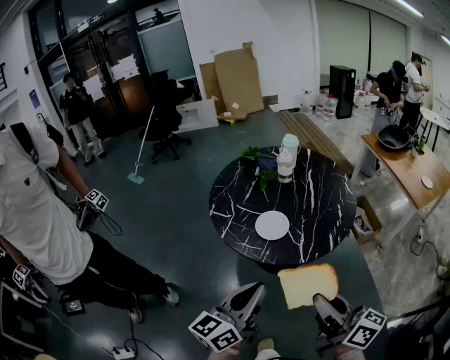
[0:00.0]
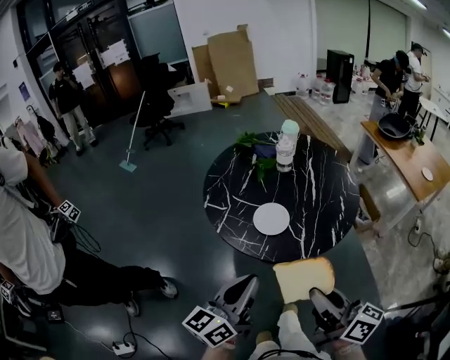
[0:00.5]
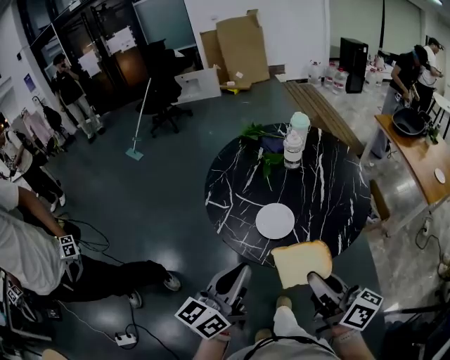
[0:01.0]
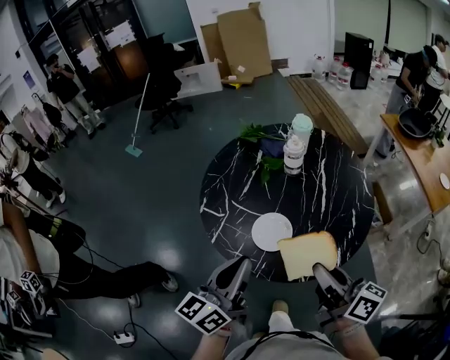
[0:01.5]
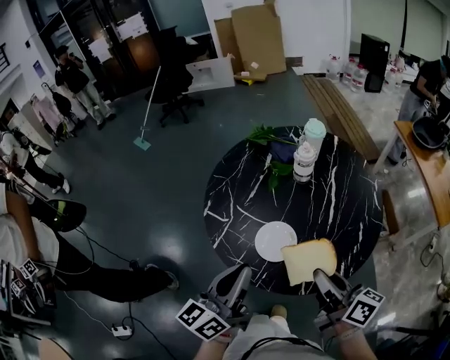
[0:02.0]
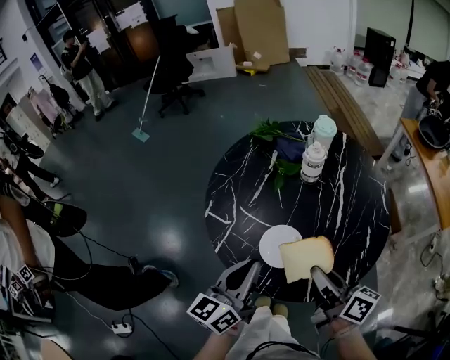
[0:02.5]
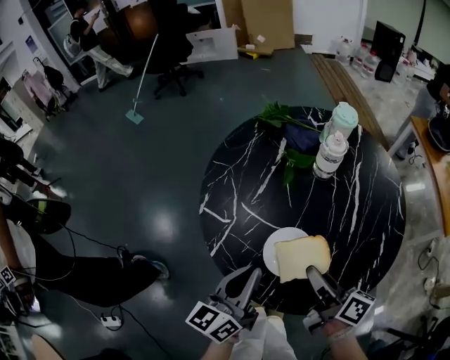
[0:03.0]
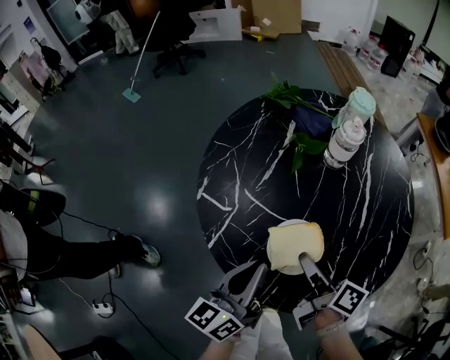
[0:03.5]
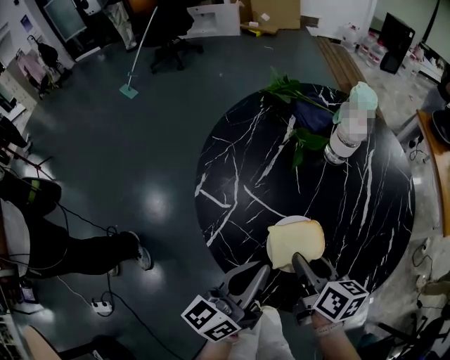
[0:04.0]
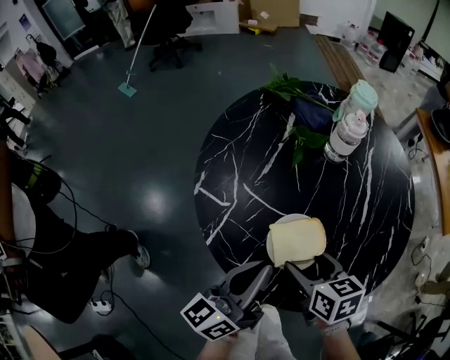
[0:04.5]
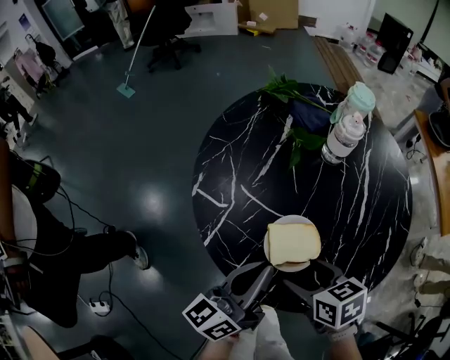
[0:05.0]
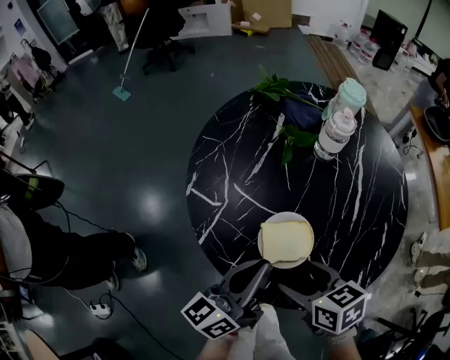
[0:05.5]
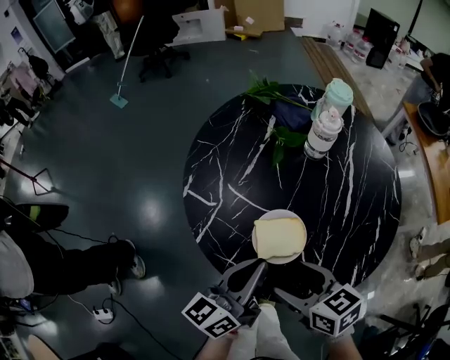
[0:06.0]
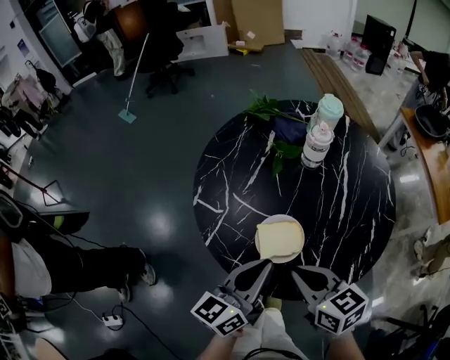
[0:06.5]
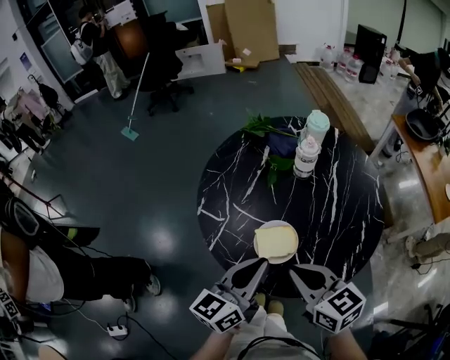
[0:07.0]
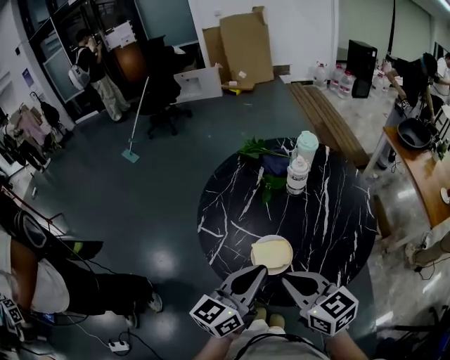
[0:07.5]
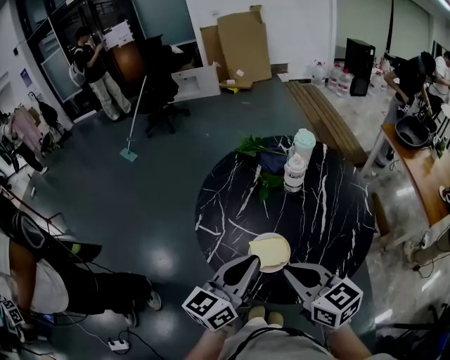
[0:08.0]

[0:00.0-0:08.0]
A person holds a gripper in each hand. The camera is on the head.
0:00.0 to 0:02.0: The two grippers go approximately 25 cm forward.
0:02.0 to 0:04.0: The right gripper travels downward, forward and to the left by roughly 25 cm, and turns by some 30 degrees; the left gripper goes approximately 15 cm downward and forward.
0:04.0 to 0:06.0: The right gripper is displaced backward by approximately 5 cm, turns by approximately 30 degrees, and opens up.
0:06.0 to 0:08.0: The grippers both shift upward by roughly 15 cm. The right gripper turns by about 20 degrees, and closes its fingers.

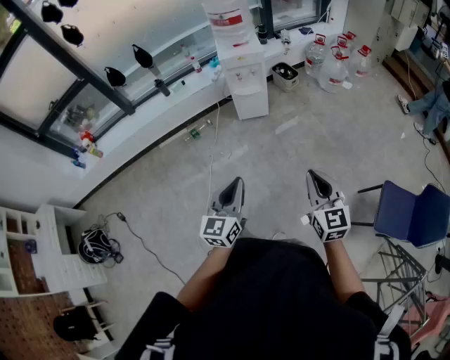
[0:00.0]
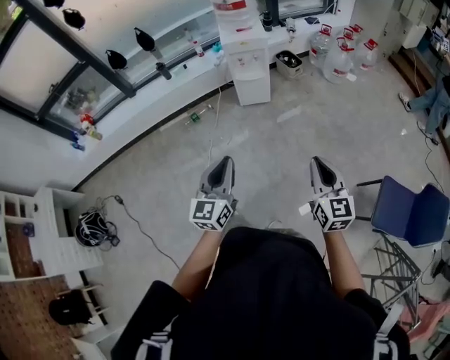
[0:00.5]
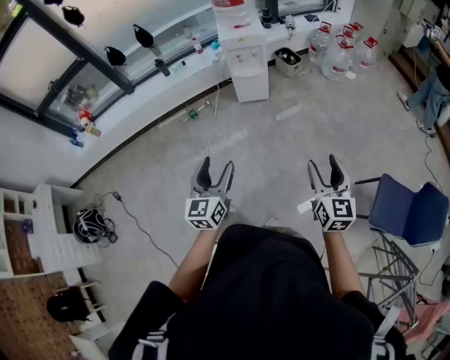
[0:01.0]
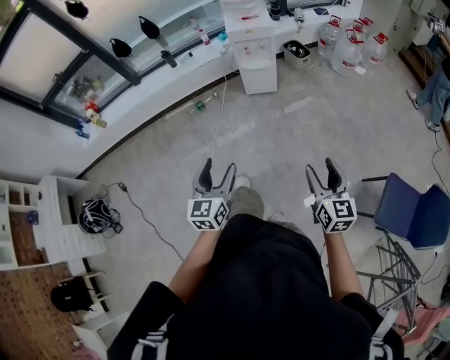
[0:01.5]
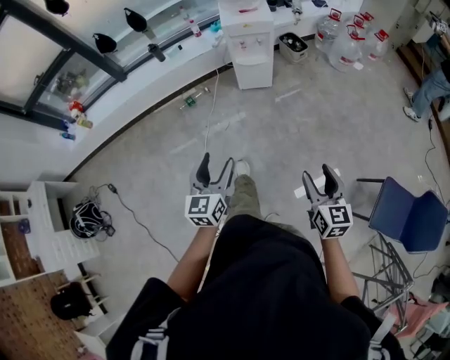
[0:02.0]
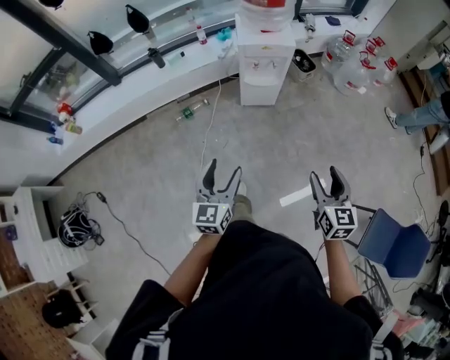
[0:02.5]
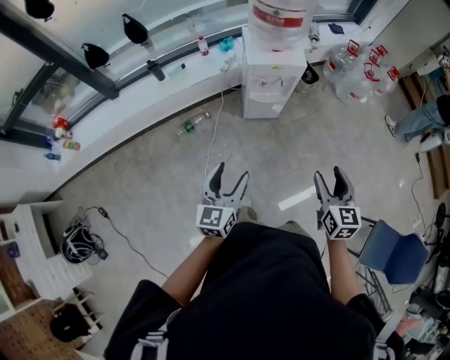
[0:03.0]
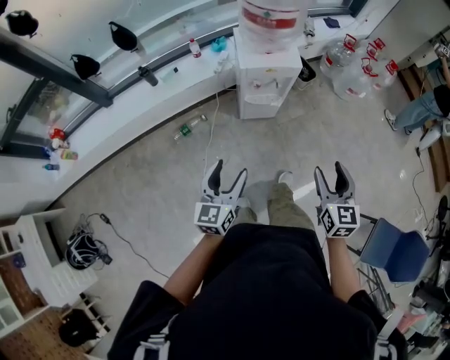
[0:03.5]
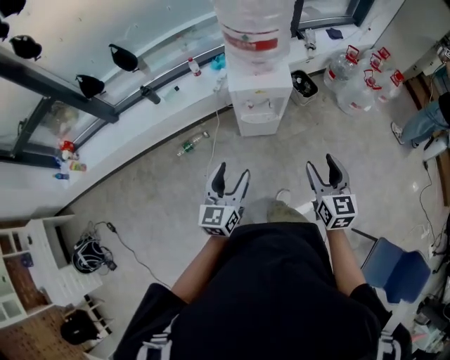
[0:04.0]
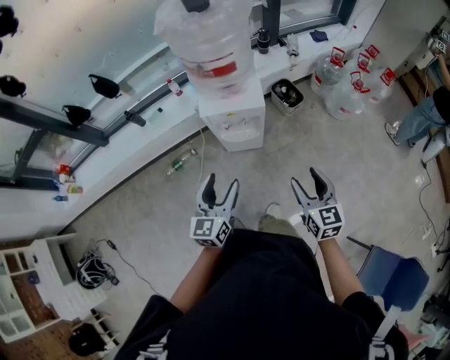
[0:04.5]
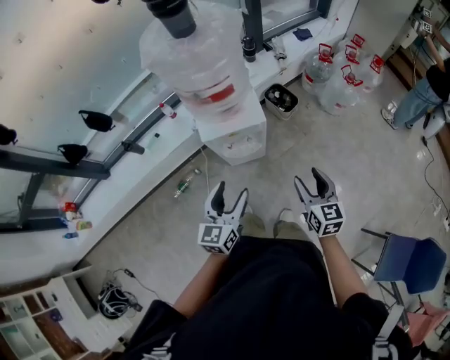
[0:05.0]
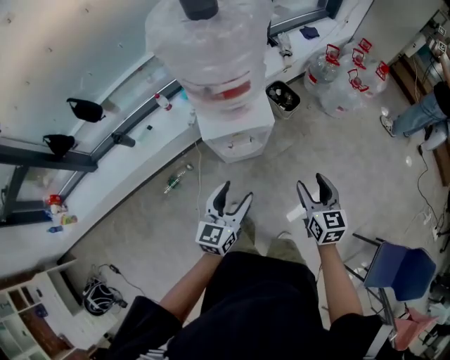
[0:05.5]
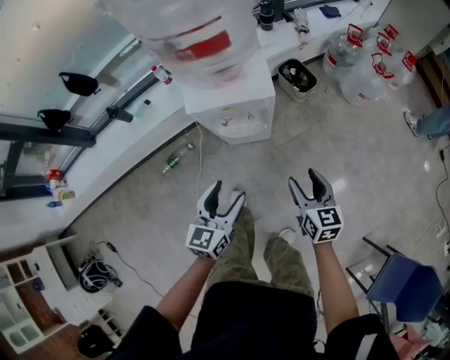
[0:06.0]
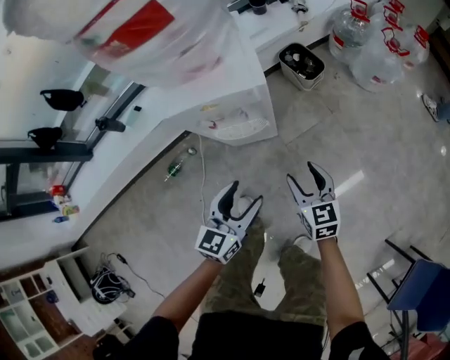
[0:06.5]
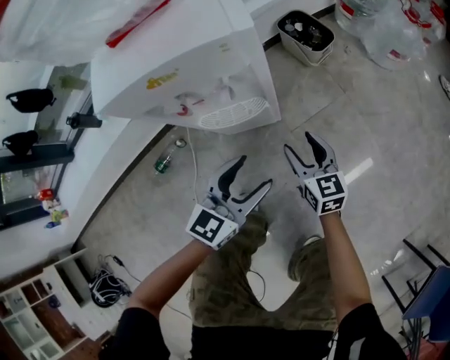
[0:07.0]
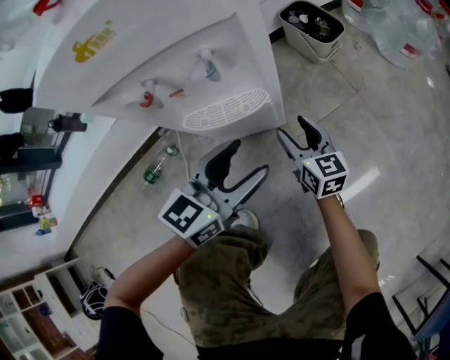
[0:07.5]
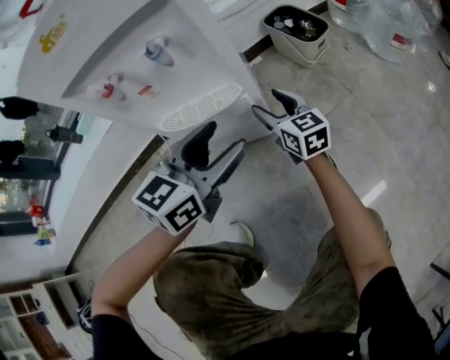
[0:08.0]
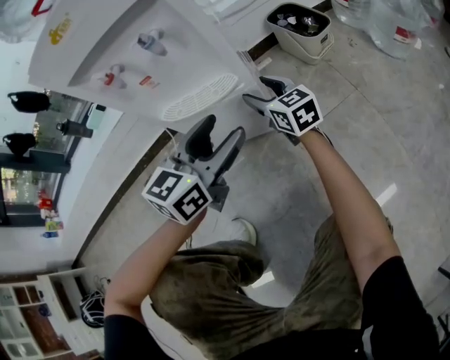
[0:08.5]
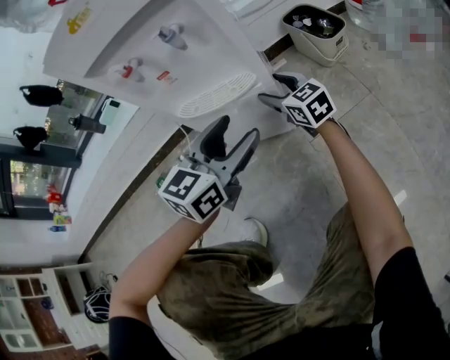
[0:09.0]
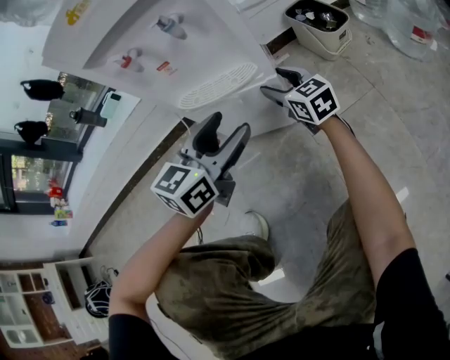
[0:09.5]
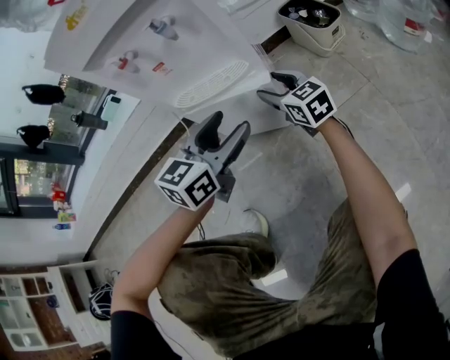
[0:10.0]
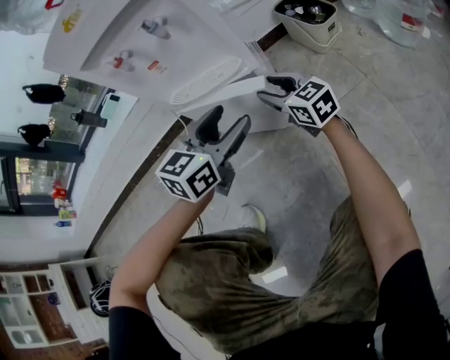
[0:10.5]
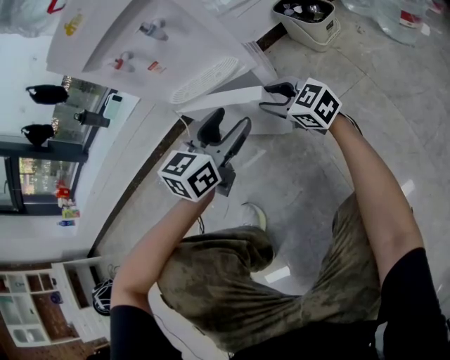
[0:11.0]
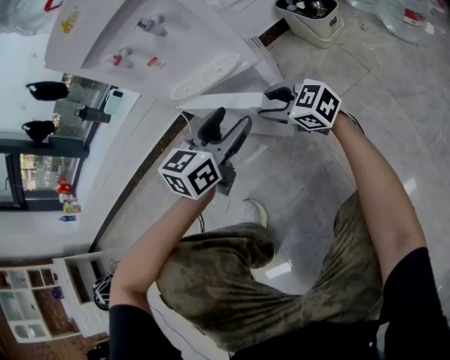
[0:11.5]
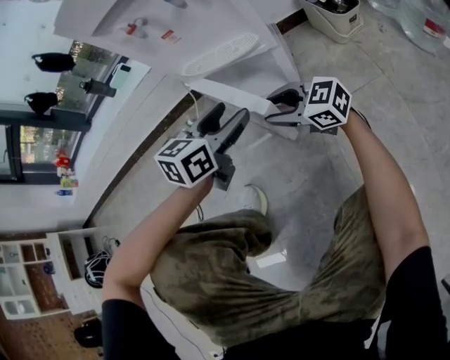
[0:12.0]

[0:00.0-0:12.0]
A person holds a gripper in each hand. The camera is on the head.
0:00.0 to 0:02.0: The right gripper shifts some 10 cm downward, and opens up. The left gripper moves forward, downward and to the left, roughly 15 cm, and opens up.
0:02.0 to 0:04.0: Both grippers are carried forward, about 40 cm.
0:04.0 to 0:06.0: The right gripper shifts about 25 cm downward and forward; the left gripper heads downward, forward and to the right, covering roughly 20 cm.
0:06.0 to 0:08.0: The grippers both shift downward and forward by roughly 50 cm.
0:08.0 to 0:10.0: The left gripper moves roughly 5 cm.
0:10.0 to 0:12.0: The right gripper moves backward and to the left, some 15 cm, and turns by roughly 40 degrees.

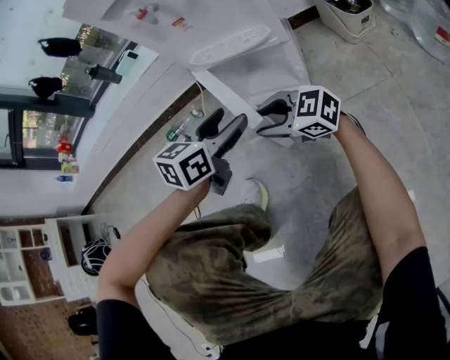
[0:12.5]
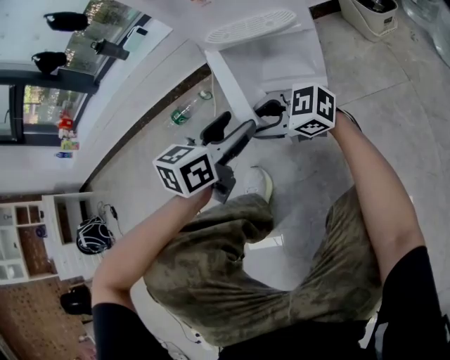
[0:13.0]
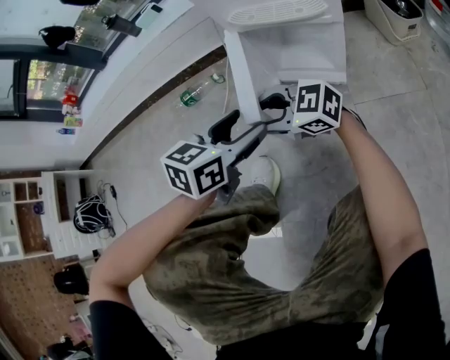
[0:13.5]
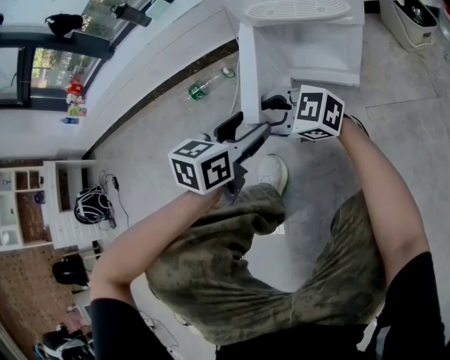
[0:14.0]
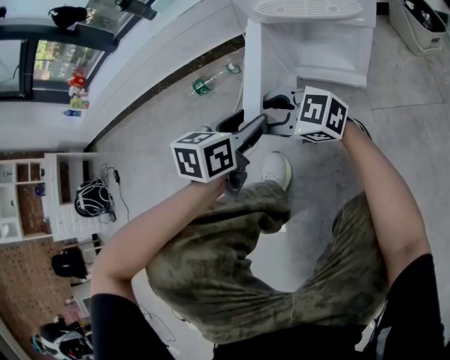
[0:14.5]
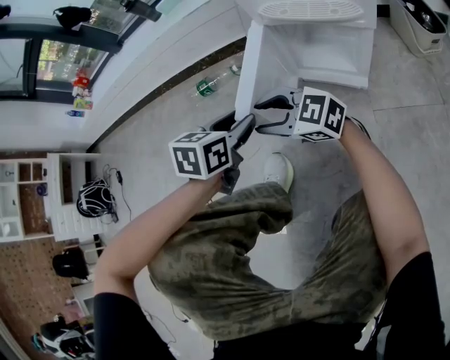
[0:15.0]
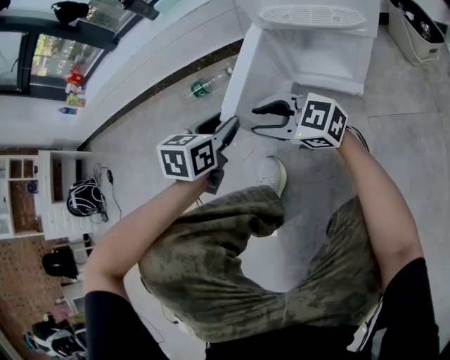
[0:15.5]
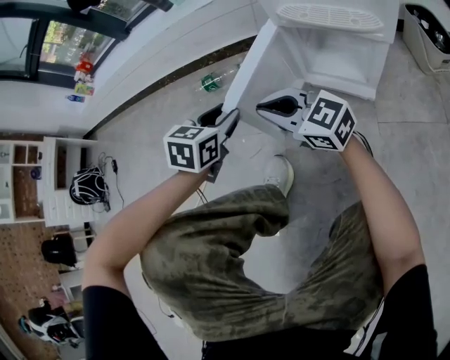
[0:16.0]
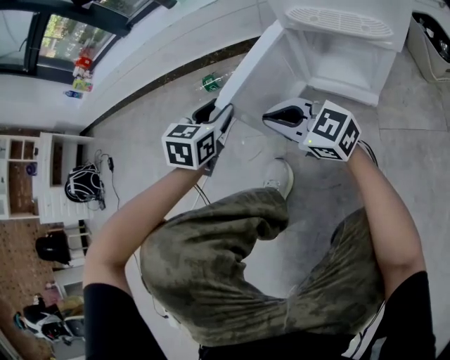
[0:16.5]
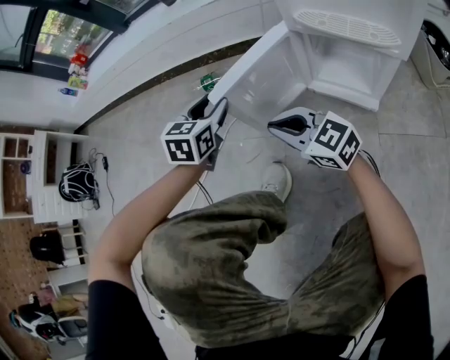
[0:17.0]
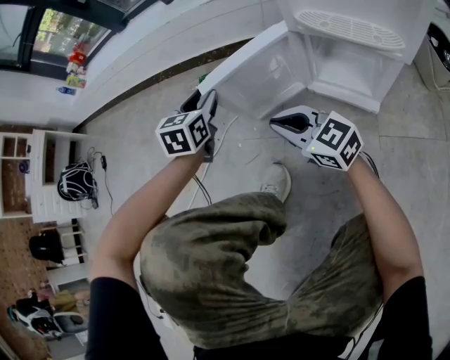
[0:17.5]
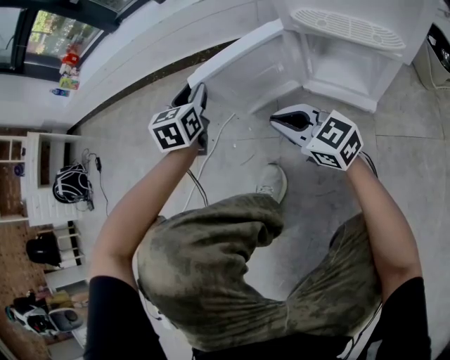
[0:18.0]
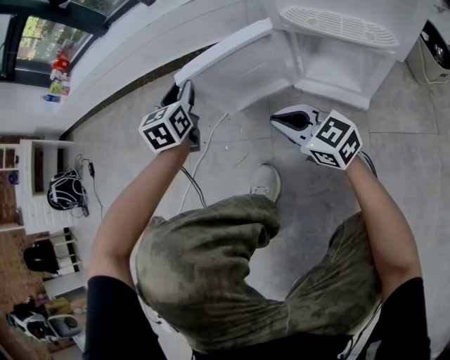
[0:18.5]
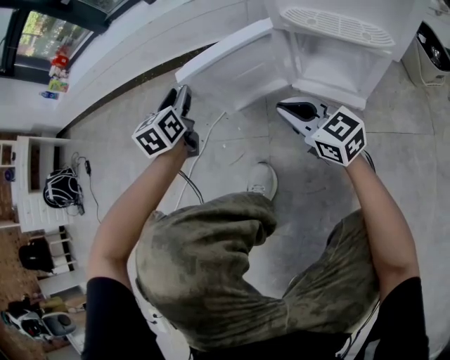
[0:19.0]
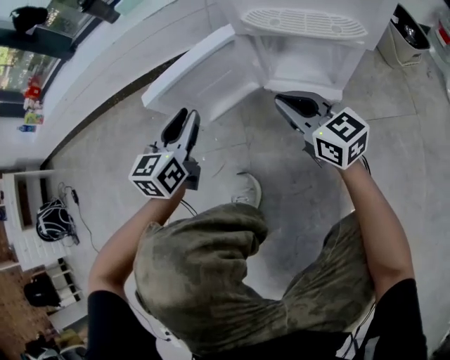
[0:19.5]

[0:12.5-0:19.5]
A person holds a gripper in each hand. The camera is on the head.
0:12.5 to 0:14.5: The right gripper moves approximately 15 cm; the left gripper shifts by roughly 15 cm, and changes its angle by approximately 20 degrees.
0:14.5 to 0:16.0: The right gripper closes, while the left gripper shifts about 10 cm to the left and forward.
0:16.0 to 0:17.5: The left gripper is displaced forward by approximately 10 cm. The right gripper goes some 5 cm downward.
0:17.5 to 0:19.5: The right gripper shifts approximately 15 cm to the right, and changes its angle by approximately 30 degrees; the left gripper travels to the right and backward by some 10 cm, and turns by approximately 20 degrees.
